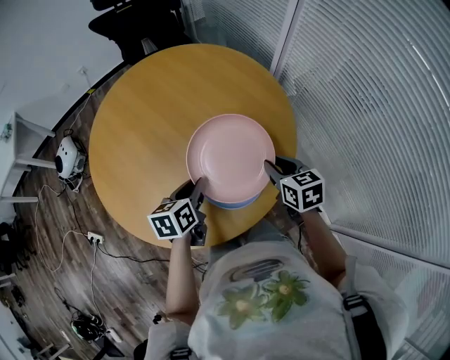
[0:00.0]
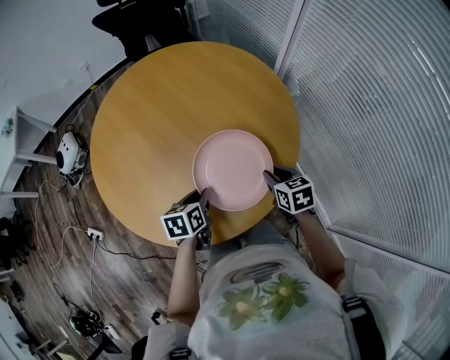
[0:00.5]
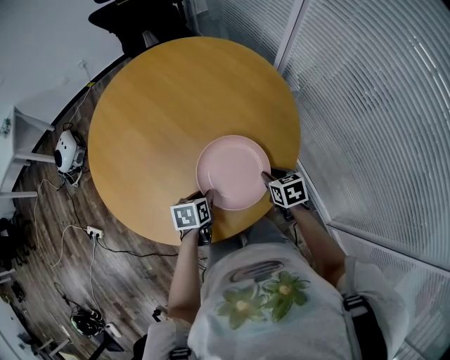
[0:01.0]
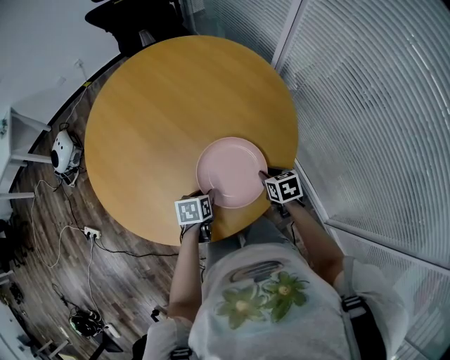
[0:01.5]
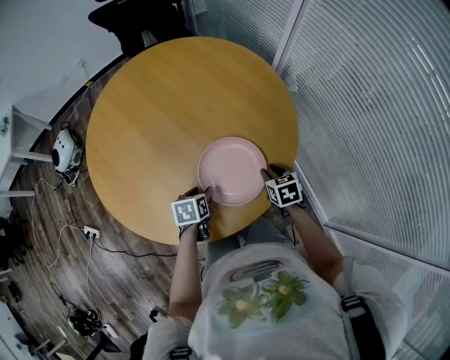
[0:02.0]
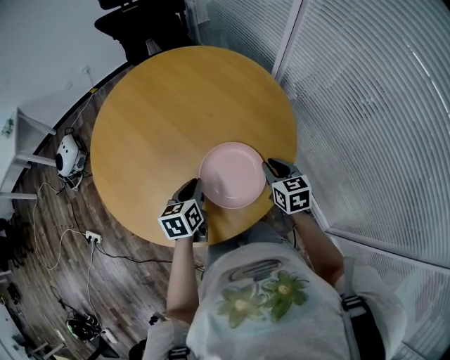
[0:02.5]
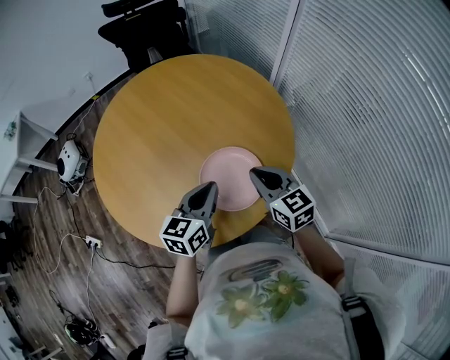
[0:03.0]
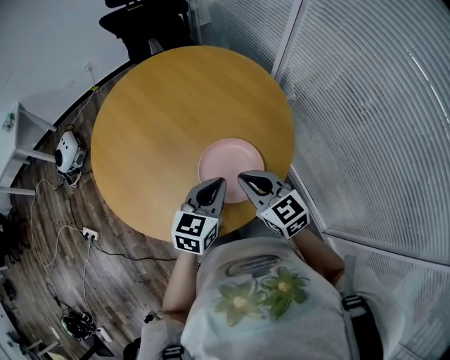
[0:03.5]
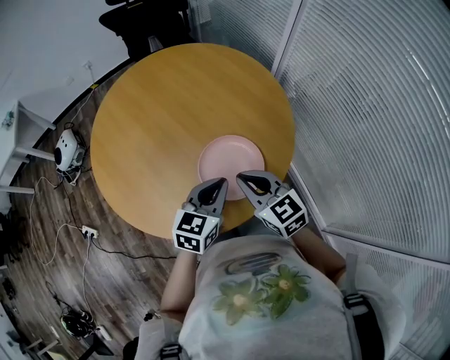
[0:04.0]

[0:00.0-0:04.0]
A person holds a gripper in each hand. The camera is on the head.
0:00.0 to 0:02.0: Both grippers move downward, some 15 cm. The left gripper opens up.
0:02.0 to 0:04.0: The right gripper shifts some 25 cm upward and to the left, and angles its fingers upward, by approximately 30 degrees. The left gripper moves upward and to the right, roughly 20 cm, points its fingers roughly 30 degrees further upward, and closes up.

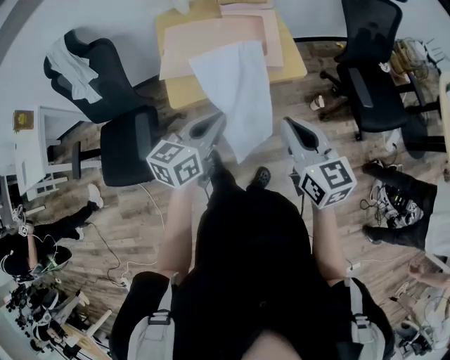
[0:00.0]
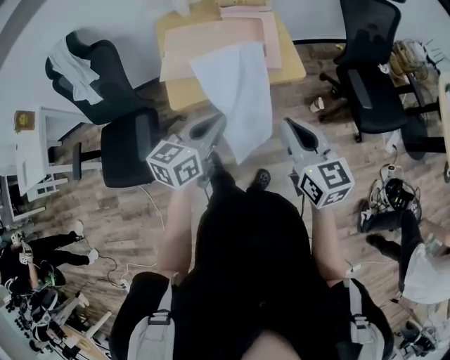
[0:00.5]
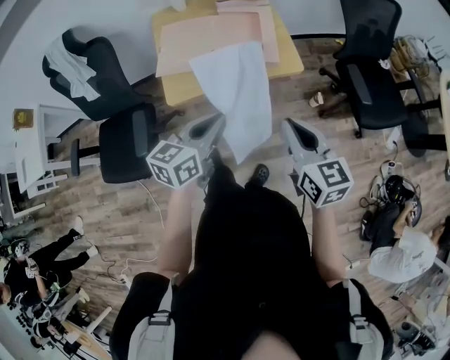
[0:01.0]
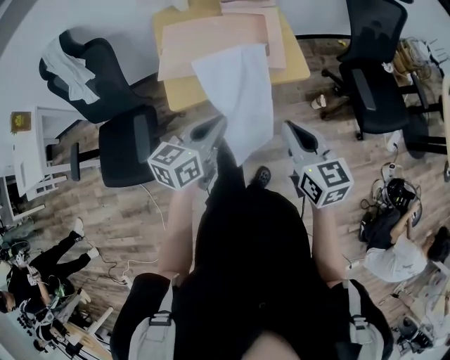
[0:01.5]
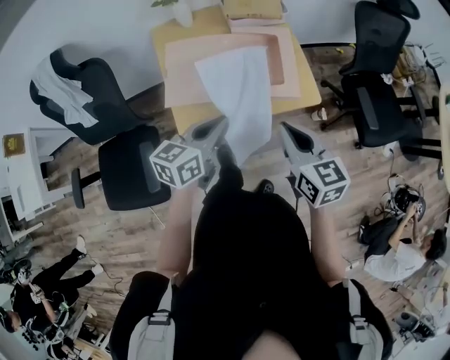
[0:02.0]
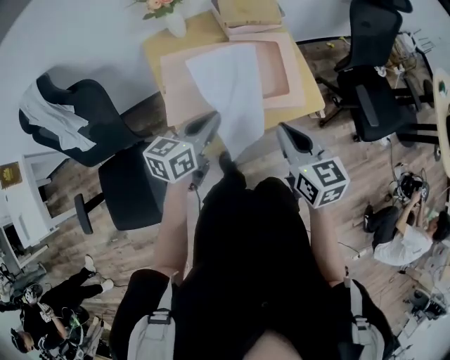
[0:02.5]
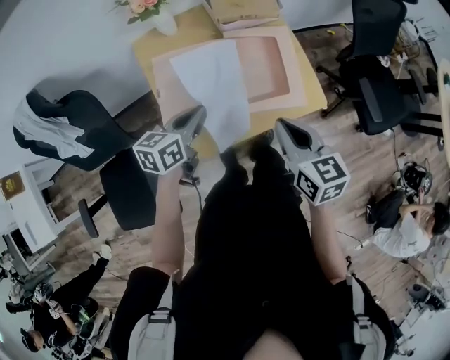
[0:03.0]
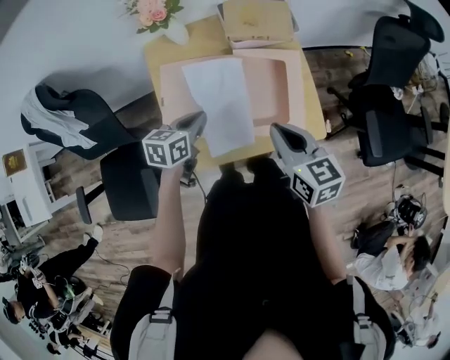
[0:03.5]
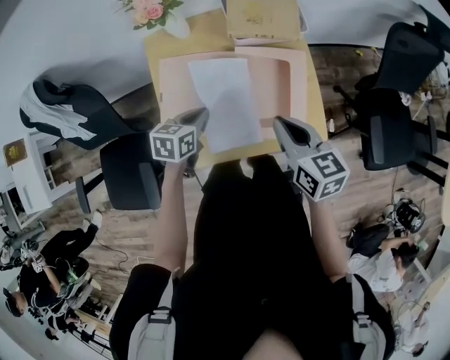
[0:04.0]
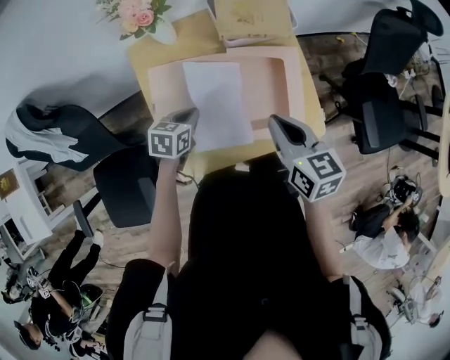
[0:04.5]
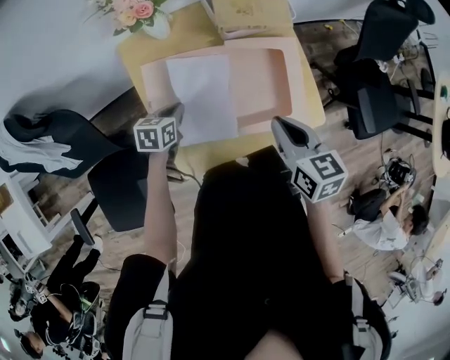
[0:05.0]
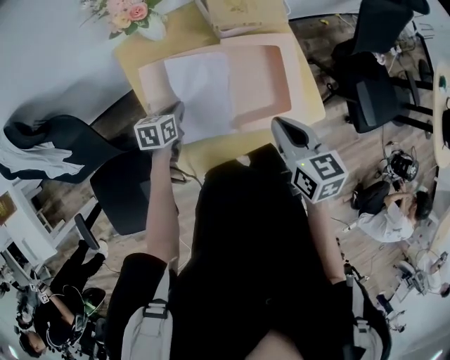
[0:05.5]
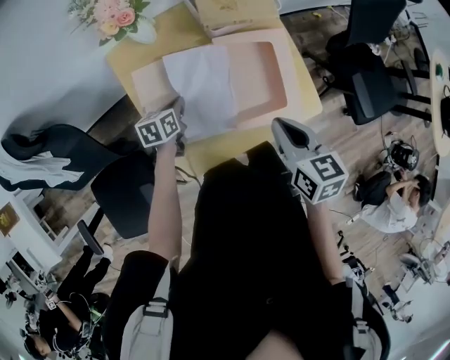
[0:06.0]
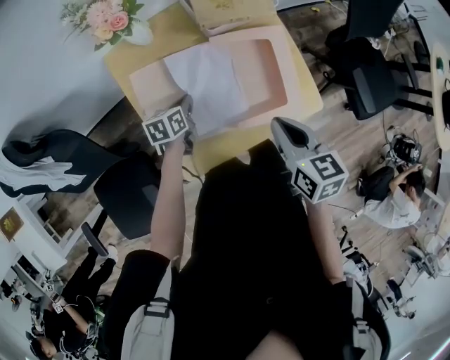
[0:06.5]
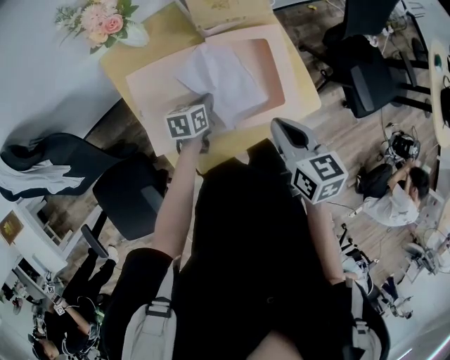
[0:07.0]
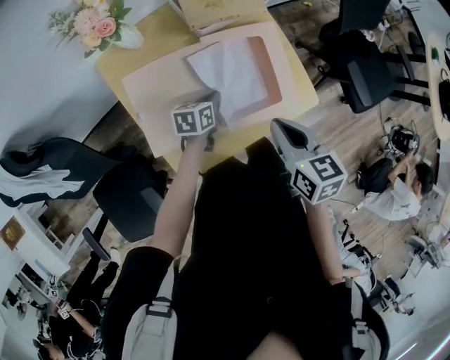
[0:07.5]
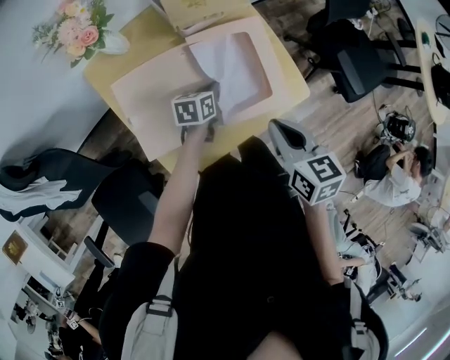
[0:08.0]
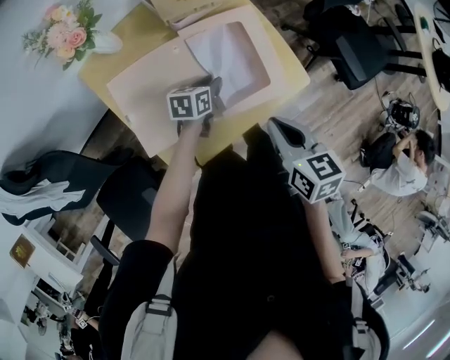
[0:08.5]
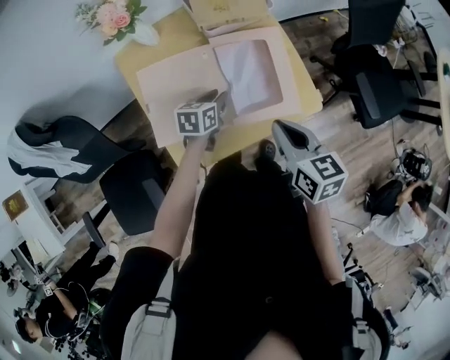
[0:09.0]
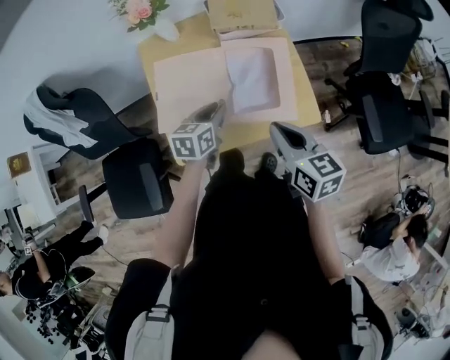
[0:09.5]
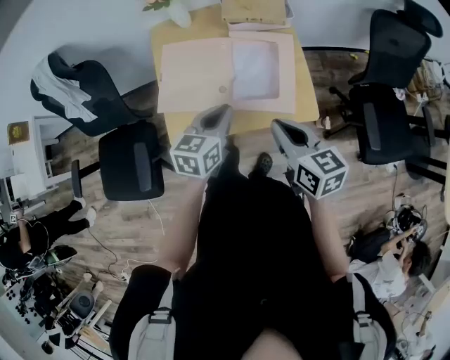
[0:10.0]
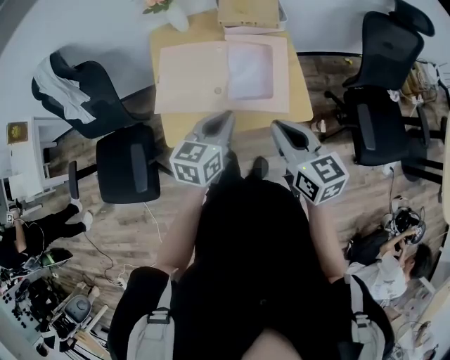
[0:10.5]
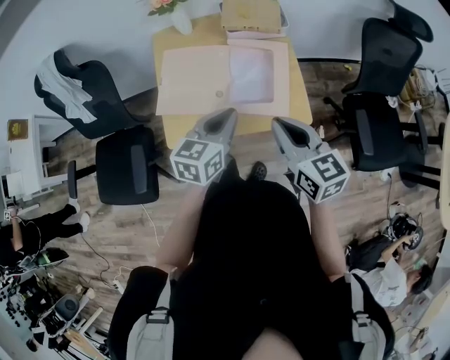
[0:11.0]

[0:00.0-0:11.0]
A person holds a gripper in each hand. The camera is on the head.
0:00.0 to 0:02.0: Both grippers travel together forward and to the left, roughly 15 cm.
0:02.0 to 0:03.5: The right gripper shifts some 20 cm forward. Meanwhile the left gripper moves forward, downward and to the left, roughly 25 cm, and turns by some 20 degrees.
0:03.5 to 0:05.5: The left gripper moves downward, to the left and forward, roughly 15 cm; the right gripper ends up approximately 5 cm from where it was.
0:05.5 to 0:07.5: The left gripper moves to the right, roughly 15 cm.
0:07.5 to 0:09.0: The left gripper opens up.
0:09.0 to 0:11.0: The right gripper shifts about 10 cm backward, upward and to the right, and changes its angle by approximately 30 degrees; the left gripper heads upward and backward, covering approximately 25 cm, turns by some 30 degrees, and closes its fingers.

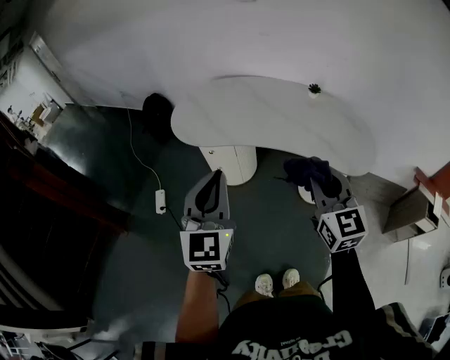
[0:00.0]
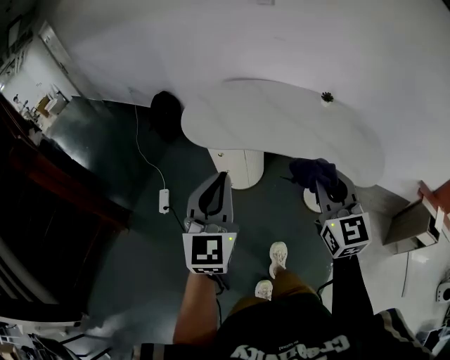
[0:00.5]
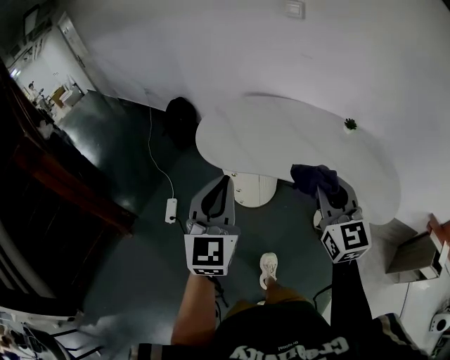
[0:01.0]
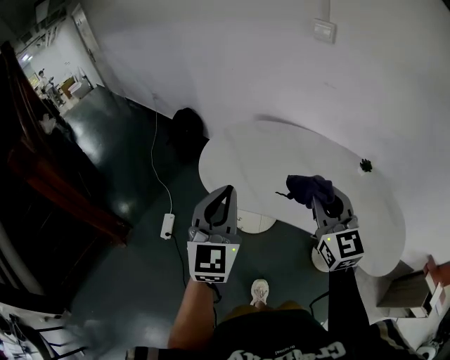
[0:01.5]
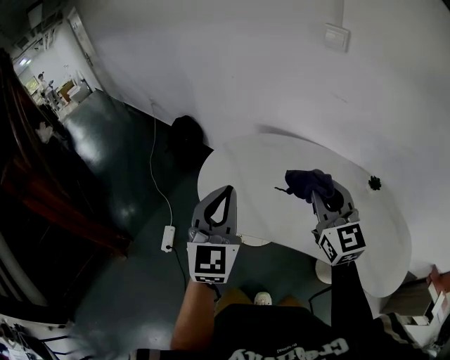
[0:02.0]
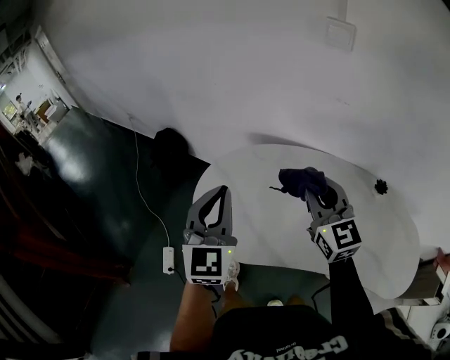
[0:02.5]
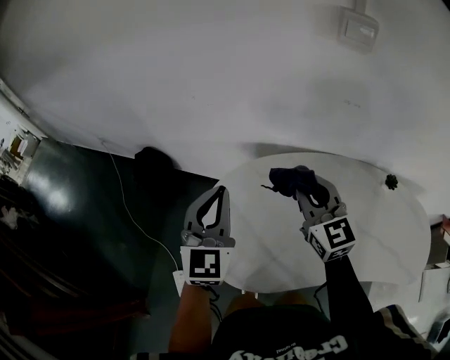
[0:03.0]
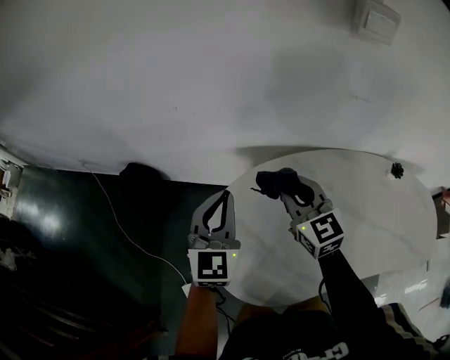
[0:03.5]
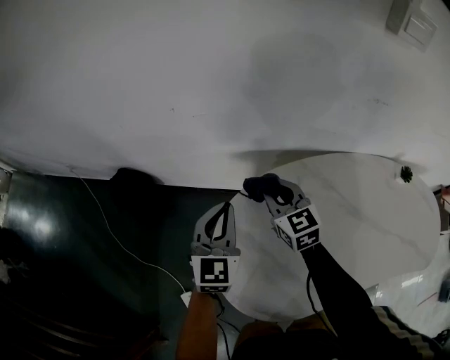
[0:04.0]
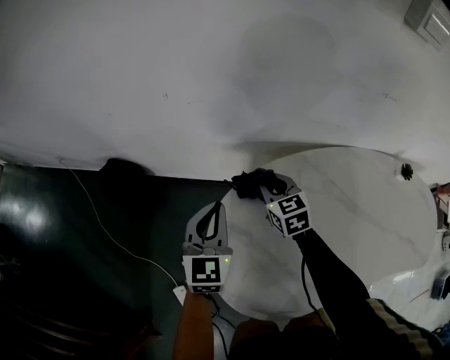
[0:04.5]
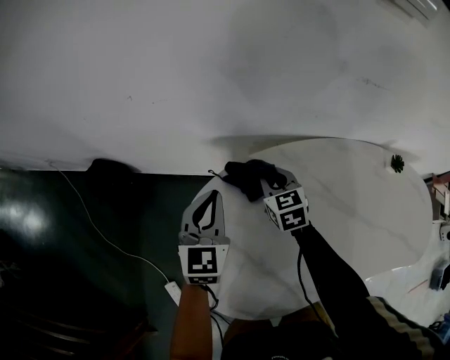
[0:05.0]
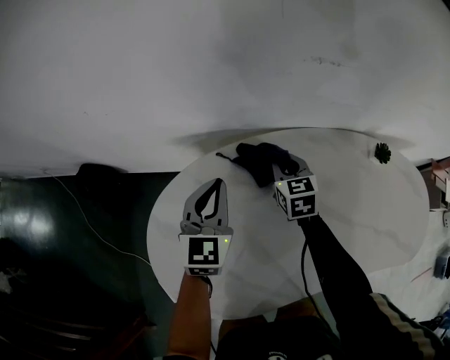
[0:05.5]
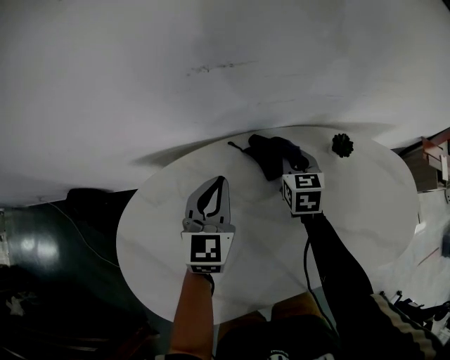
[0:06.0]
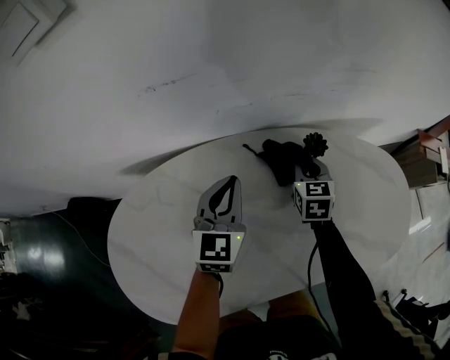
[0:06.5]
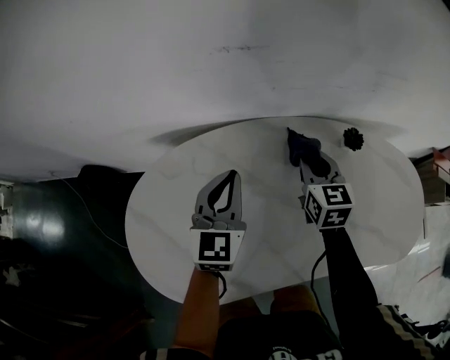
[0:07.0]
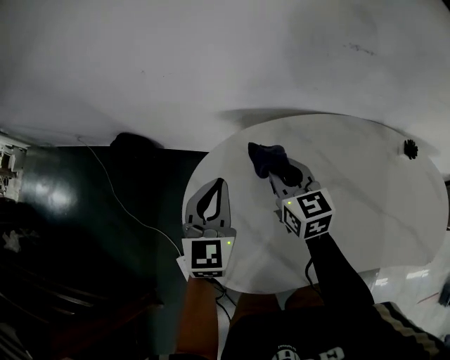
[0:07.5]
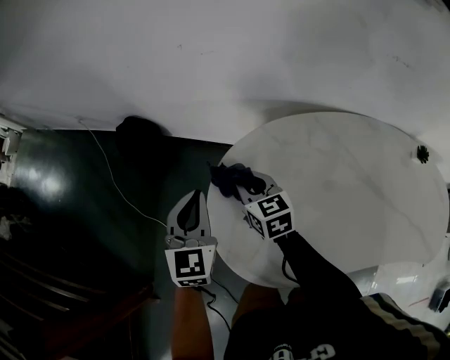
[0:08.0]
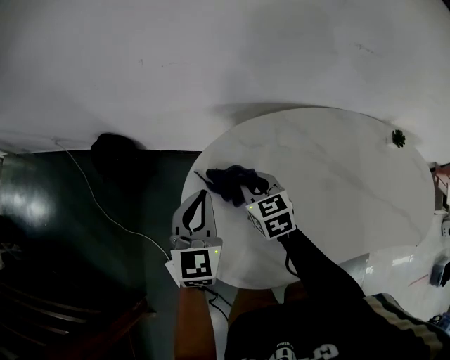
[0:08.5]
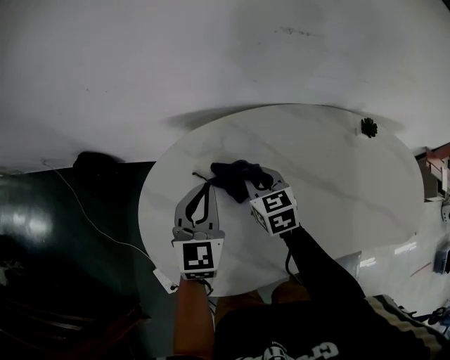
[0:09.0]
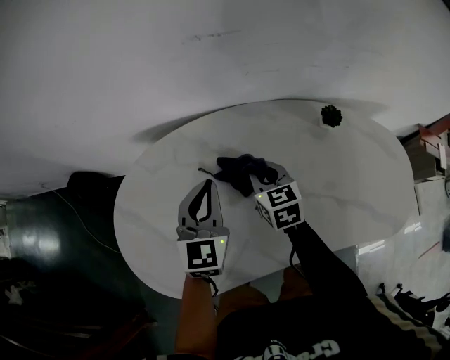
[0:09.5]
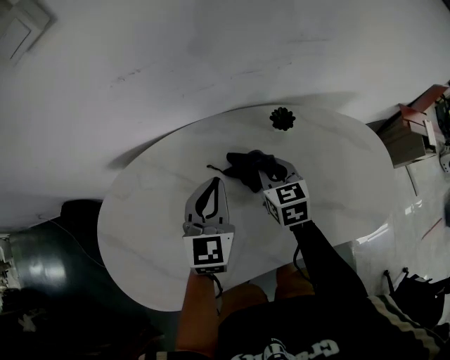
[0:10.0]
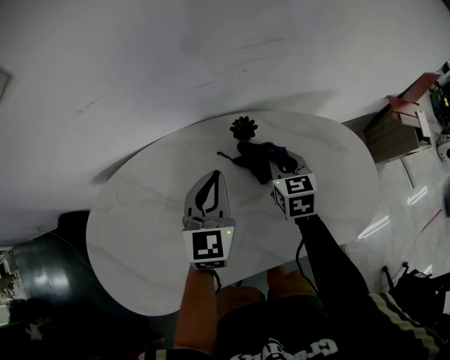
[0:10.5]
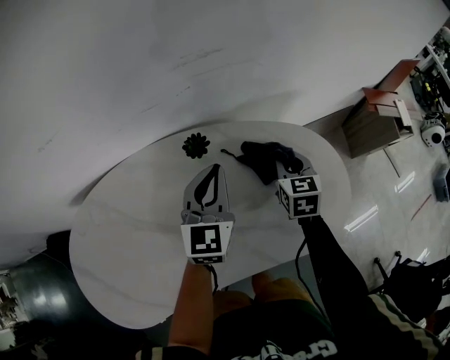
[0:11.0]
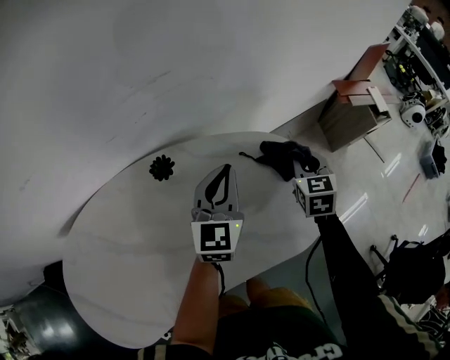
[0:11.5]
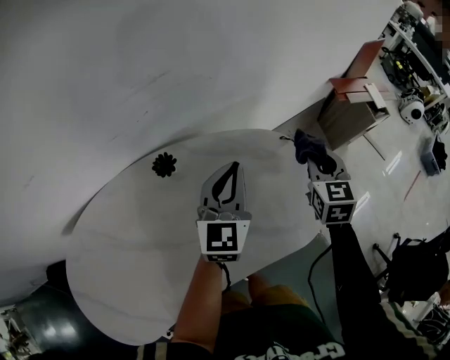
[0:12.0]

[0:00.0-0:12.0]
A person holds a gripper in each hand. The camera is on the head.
0:00.0 to 0:02.0: The two grippers go some 40 cm forward.
0:02.0 to 0:04.0: The pair of grippers is taken forward, approximately 50 cm. The two grippers go some 25 cm downward. The left gripper turns by roughly 30 degrees. Meanwhile the right gripper turns by some 30 degrees.
0:04.0 to 0:06.0: The two grippers go roughly 40 cm to the right. The right gripper changes its angle by roughly 30 degrees.
0:06.0 to 0:08.0: Both grippers are carried about 50 cm. The left gripper swivels about 30 degrees. Meanwhile the right gripper turns by about 40 degrees.
0:08.0 to 0:10.0: Both grippers are carried some 60 cm. The right gripper changes its angle by some 30 degrees; the left gripper swivels roughly 30 degrees.
0:10.0 to 0:12.0: The right gripper ends up some 50 cm from where it was, and swivels about 30 degrees, while the left gripper shifts by approximately 40 cm, and swivels some 30 degrees.
